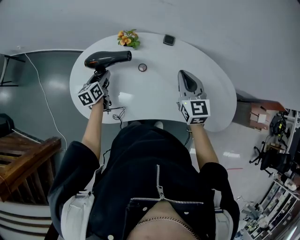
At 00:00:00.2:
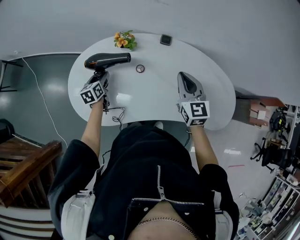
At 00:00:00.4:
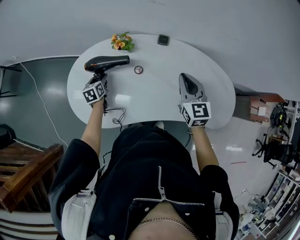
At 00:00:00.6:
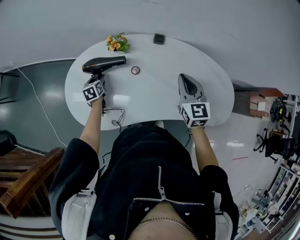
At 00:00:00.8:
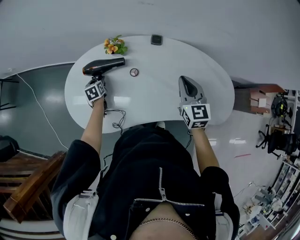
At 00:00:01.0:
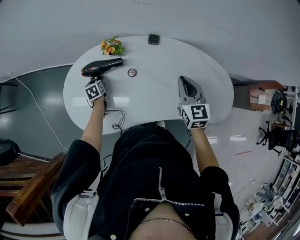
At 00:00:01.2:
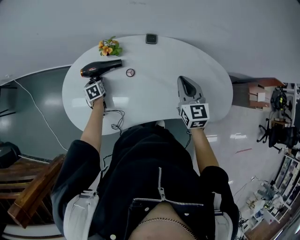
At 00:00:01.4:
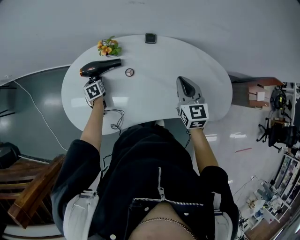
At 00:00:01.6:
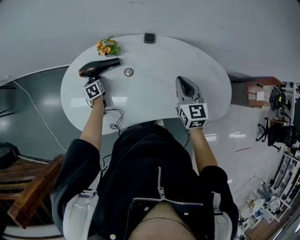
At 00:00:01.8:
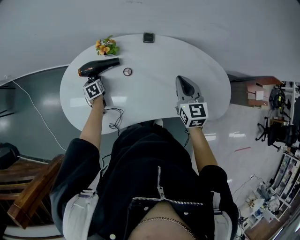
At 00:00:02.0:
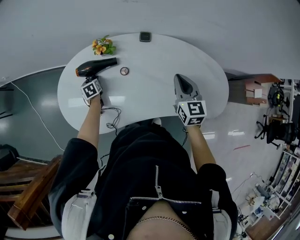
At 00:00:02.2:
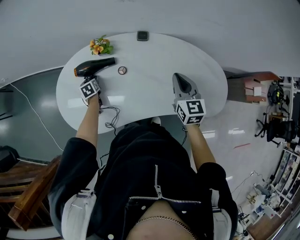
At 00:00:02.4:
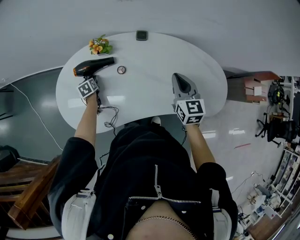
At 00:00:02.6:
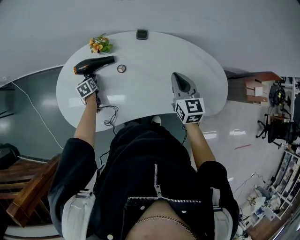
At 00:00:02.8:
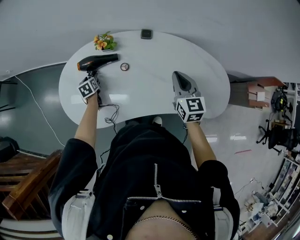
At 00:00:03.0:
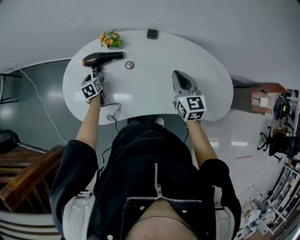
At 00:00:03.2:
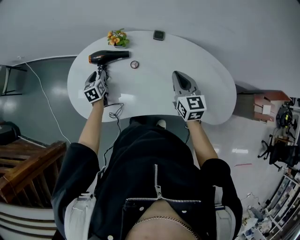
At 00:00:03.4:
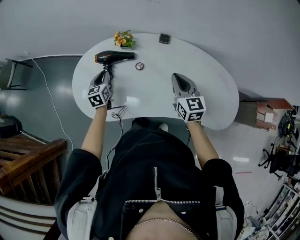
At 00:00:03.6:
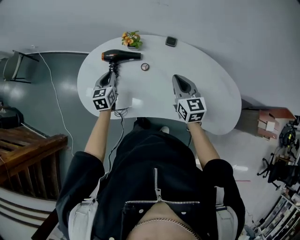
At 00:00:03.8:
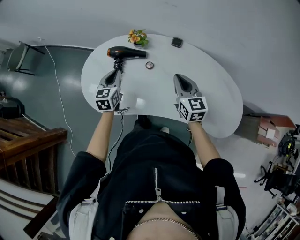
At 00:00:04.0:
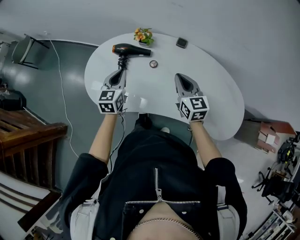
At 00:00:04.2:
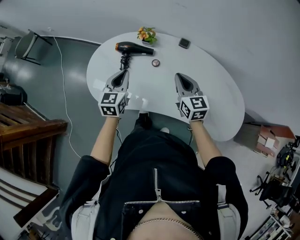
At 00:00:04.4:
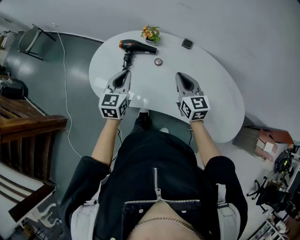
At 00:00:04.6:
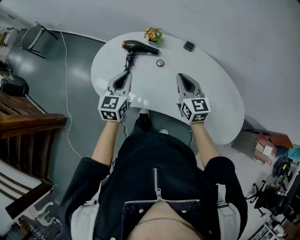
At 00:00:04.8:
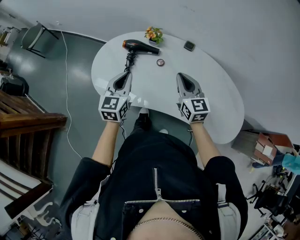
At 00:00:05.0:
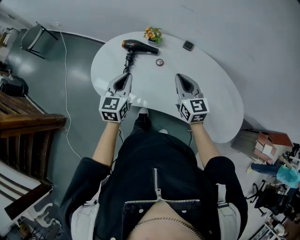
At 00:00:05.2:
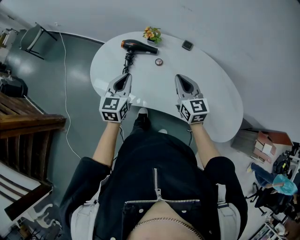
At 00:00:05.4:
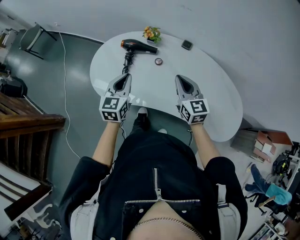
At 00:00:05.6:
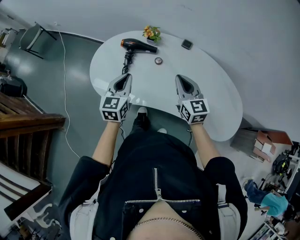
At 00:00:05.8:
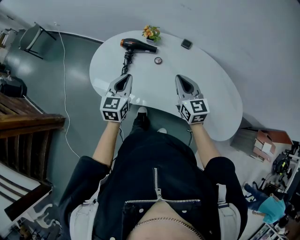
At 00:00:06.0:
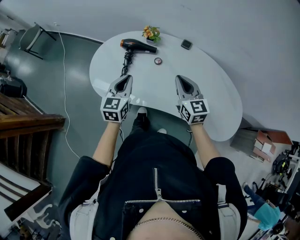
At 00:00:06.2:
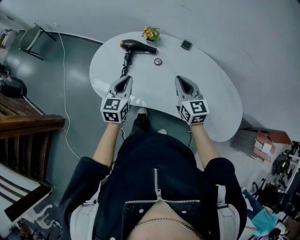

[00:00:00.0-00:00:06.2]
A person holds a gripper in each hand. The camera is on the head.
00:00:00.0 to 00:00:01.6: The right gripper heads to the right, covering some 5 cm. Meanwhile the left gripper goes approximately 10 cm downward, and rotates some 30 degrees.
00:00:01.6 to 00:00:03.2: The left gripper heads upward, covering some 10 cm.
00:00:03.2 to 00:00:04.6: The left gripper travels upward and backward by roughly 25 cm, turns by some 20 degrees, and closes; the right gripper is displaced to the left by some 10 cm.
00:00:04.6 to 00:00:06.2: There are only small adjustments of the grippers.

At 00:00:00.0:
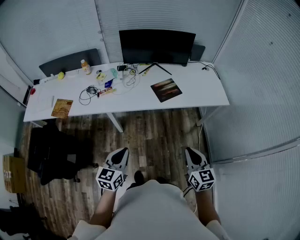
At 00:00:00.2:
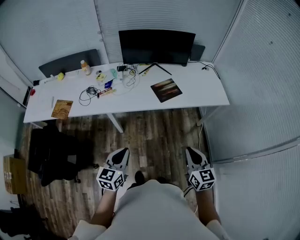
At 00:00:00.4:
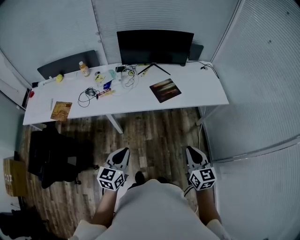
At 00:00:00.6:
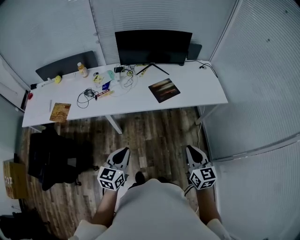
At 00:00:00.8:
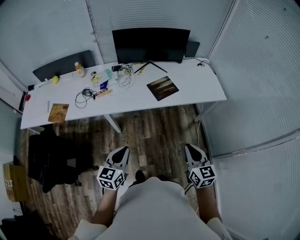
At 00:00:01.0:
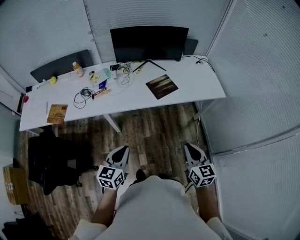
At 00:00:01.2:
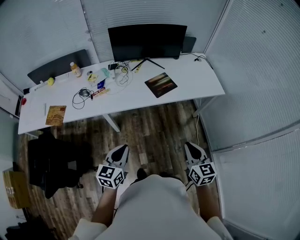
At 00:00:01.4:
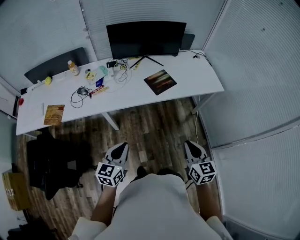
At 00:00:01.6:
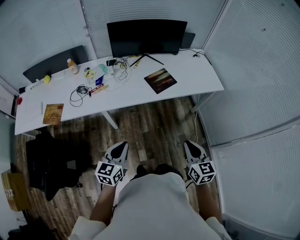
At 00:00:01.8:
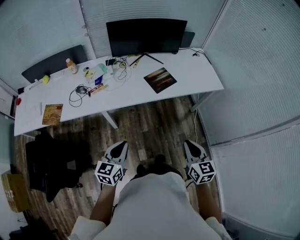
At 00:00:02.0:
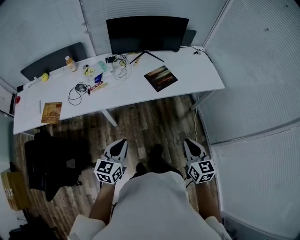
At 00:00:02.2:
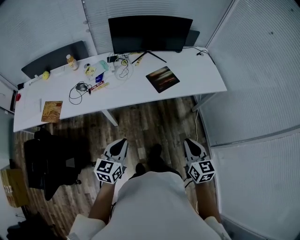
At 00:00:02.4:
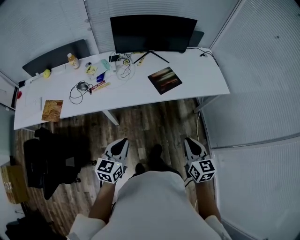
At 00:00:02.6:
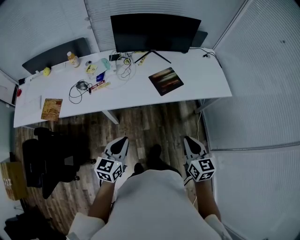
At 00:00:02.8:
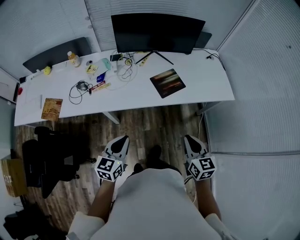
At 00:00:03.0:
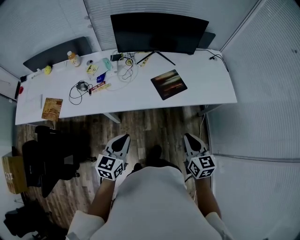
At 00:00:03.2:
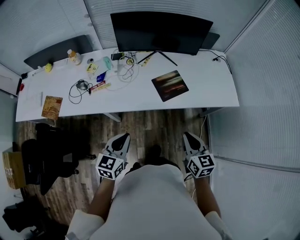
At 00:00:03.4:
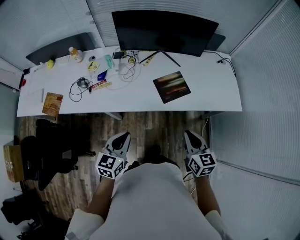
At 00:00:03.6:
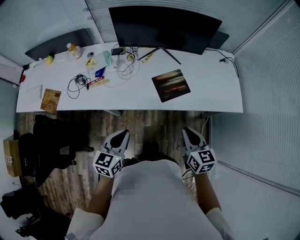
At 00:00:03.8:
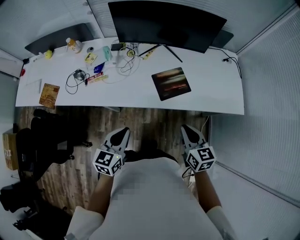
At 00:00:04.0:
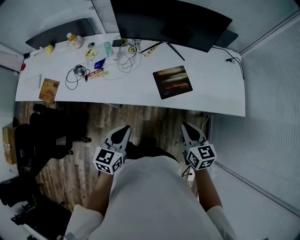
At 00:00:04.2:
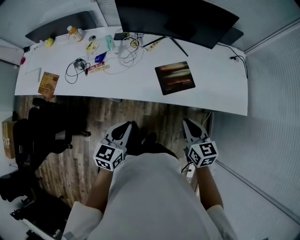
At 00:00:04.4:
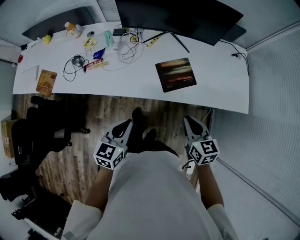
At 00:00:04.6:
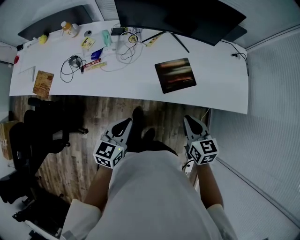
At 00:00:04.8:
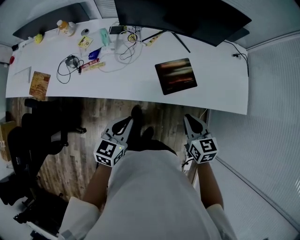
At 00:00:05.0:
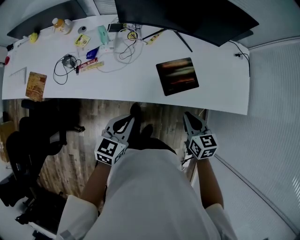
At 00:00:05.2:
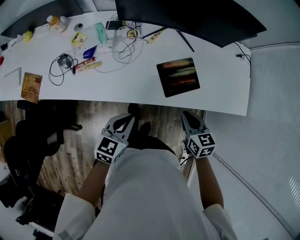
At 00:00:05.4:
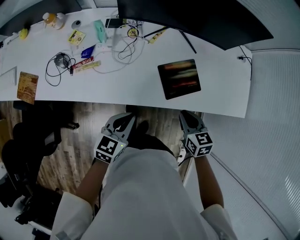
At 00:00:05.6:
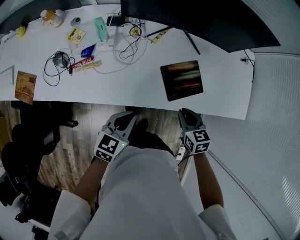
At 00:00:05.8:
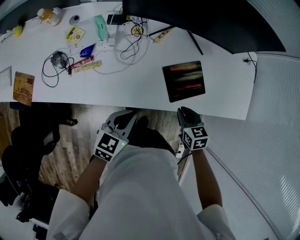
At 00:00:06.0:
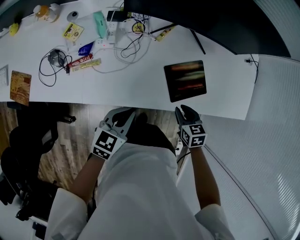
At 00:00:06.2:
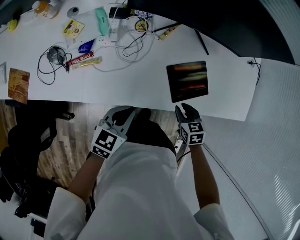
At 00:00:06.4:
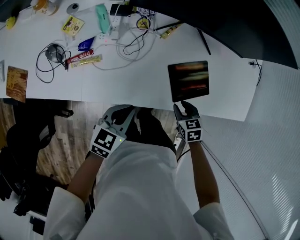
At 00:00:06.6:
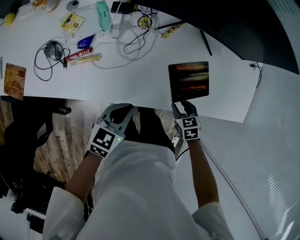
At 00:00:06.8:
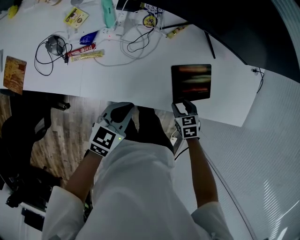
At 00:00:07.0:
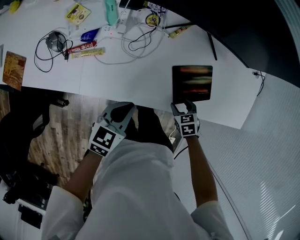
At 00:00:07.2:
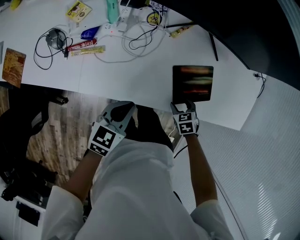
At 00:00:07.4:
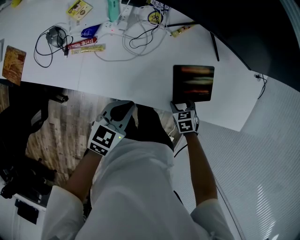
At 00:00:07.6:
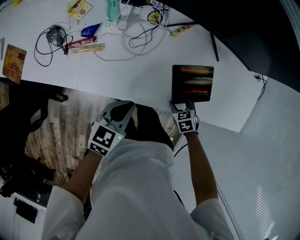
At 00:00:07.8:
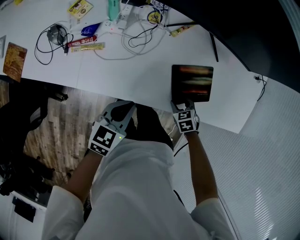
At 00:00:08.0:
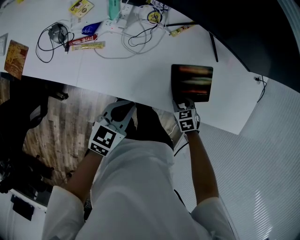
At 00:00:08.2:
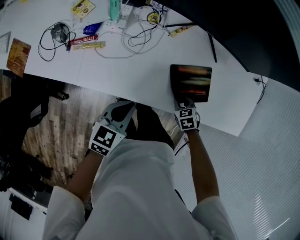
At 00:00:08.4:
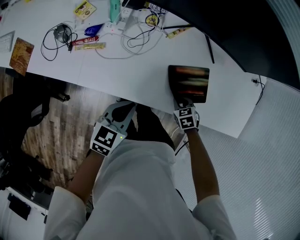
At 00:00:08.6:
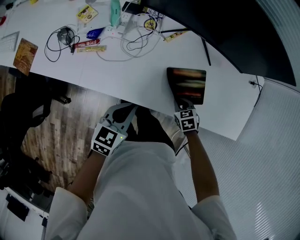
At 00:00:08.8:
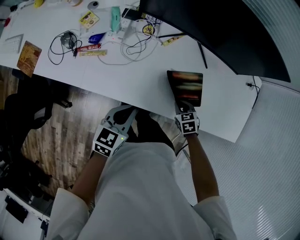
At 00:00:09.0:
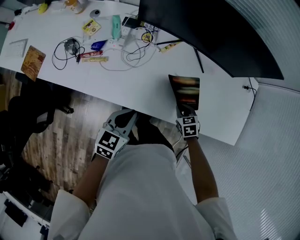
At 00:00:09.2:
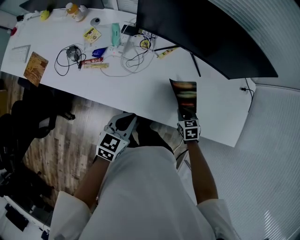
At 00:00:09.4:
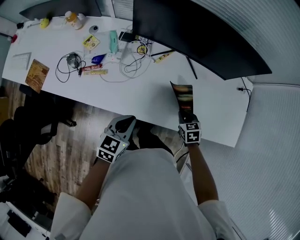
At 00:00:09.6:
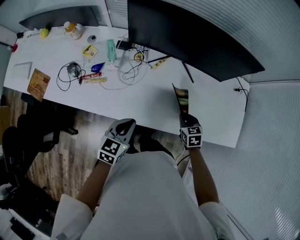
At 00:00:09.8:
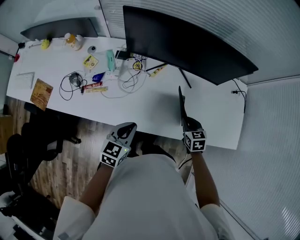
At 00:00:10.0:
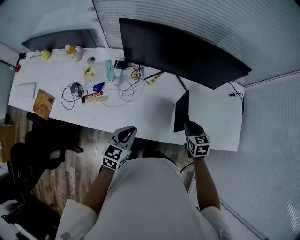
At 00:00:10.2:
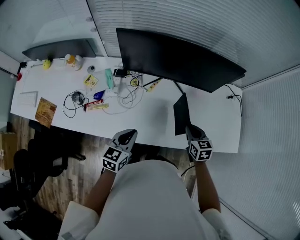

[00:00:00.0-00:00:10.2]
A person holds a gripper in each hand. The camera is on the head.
00:00:00.0 to 00:00:01.4: The grippers stay close to where they were, moving slightly.
00:00:01.4 to 00:00:03.0: The two grippers go some 15 cm forward.
00:00:03.0 to 00:00:04.4: The left gripper shifts roughly 10 cm forward and to the right. The right gripper shifts approximately 15 cm forward and downward.
00:00:04.4 to 00:00:05.8: The left gripper heads forward, downward and to the left, covering approximately 20 cm. The right gripper travels downward, forward and to the left by roughly 20 cm, and rotates about 20 degrees.
00:00:05.8 to 00:00:07.2: The left gripper ends up approximately 5 cm from where it was. The right gripper shifts approximately 15 cm downward, changes its angle by approximately 30 degrees, and opens.
00:00:07.2 to 00:00:08.8: The right gripper moves roughly 5 cm, and closes; the left gripper ends up approximately 5 cm from where it was.
00:00:08.8 to 00:00:10.2: The left gripper heads upward, covering about 10 cm. The right gripper heads upward, covering approximately 20 cm, and turns by about 30 degrees.

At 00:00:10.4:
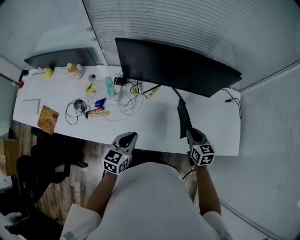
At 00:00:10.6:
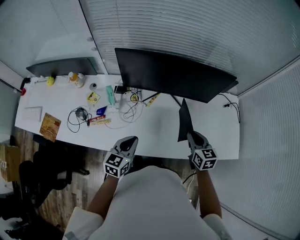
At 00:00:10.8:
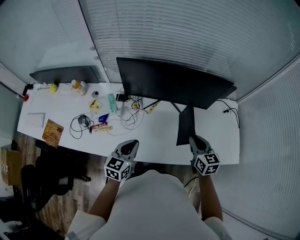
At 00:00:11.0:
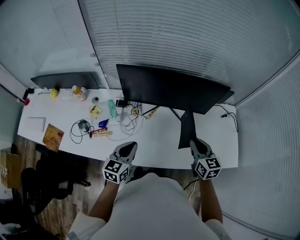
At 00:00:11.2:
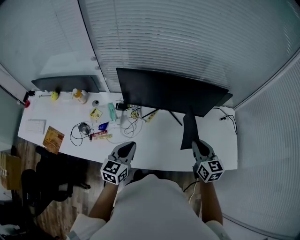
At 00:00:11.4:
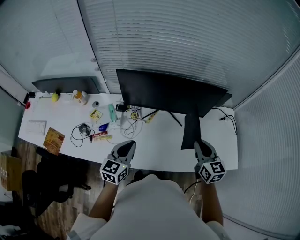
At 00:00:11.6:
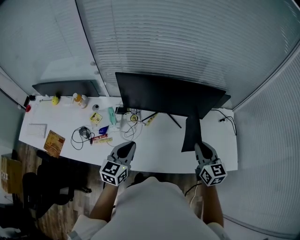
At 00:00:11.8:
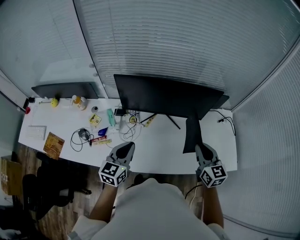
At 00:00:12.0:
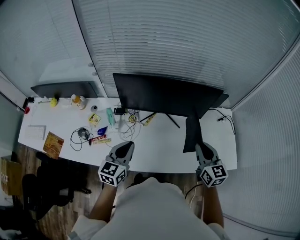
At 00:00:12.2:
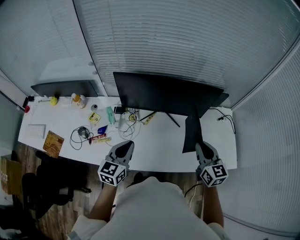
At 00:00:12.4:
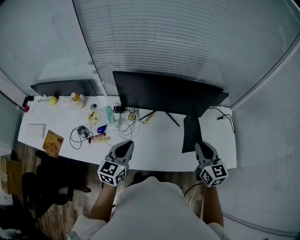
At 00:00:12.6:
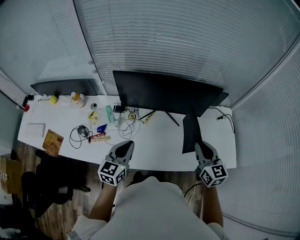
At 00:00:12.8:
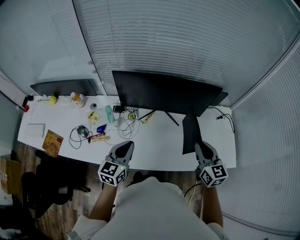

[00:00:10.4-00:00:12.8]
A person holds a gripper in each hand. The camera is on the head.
00:00:10.4 to 00:00:11.6: Both grippers move upward, some 15 cm.
00:00:11.6 to 00:00:12.8: The grippers stay close to where they were, moving slightly.

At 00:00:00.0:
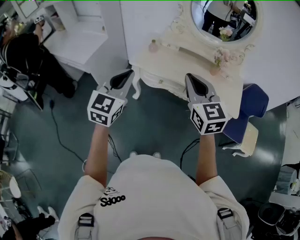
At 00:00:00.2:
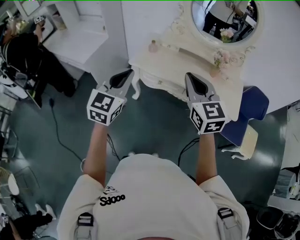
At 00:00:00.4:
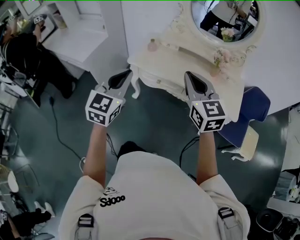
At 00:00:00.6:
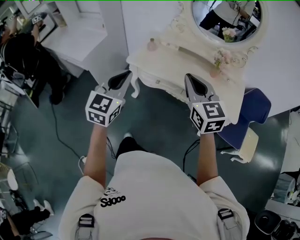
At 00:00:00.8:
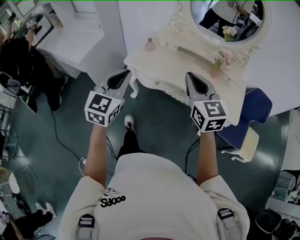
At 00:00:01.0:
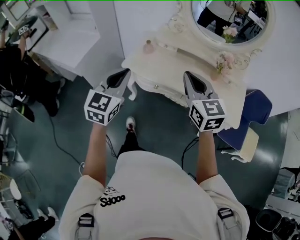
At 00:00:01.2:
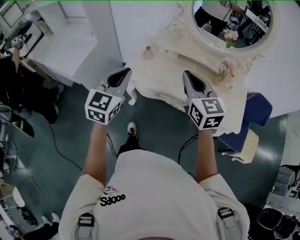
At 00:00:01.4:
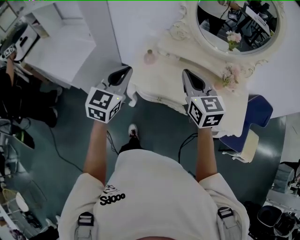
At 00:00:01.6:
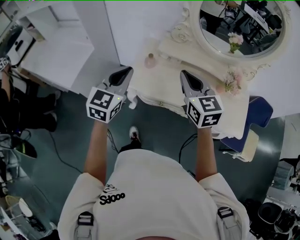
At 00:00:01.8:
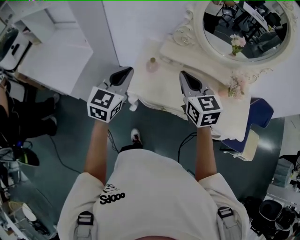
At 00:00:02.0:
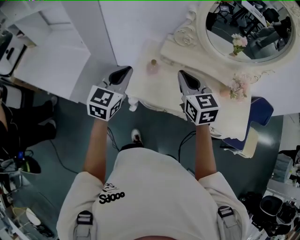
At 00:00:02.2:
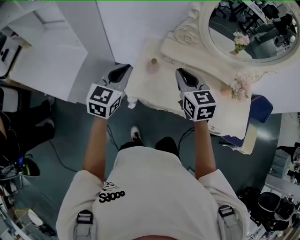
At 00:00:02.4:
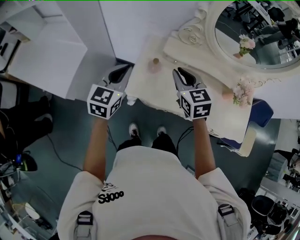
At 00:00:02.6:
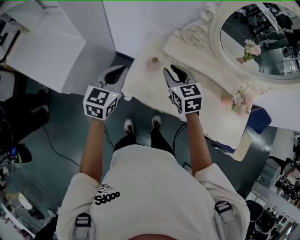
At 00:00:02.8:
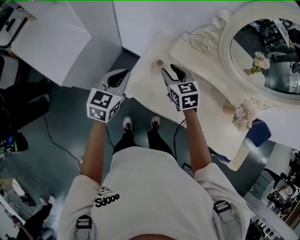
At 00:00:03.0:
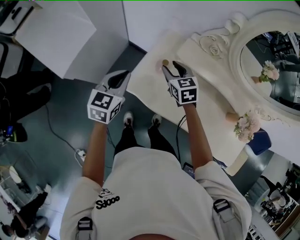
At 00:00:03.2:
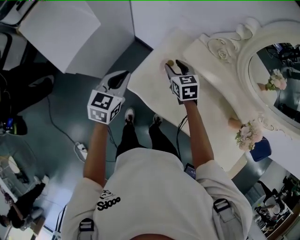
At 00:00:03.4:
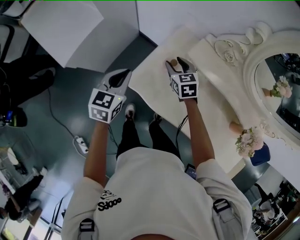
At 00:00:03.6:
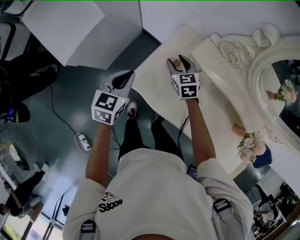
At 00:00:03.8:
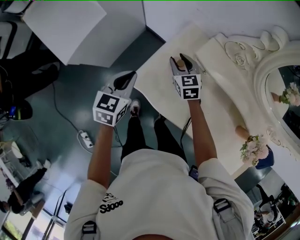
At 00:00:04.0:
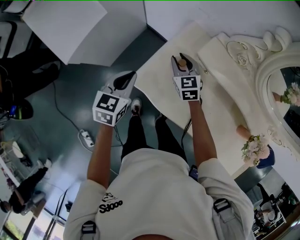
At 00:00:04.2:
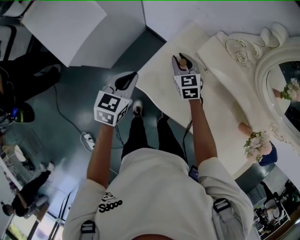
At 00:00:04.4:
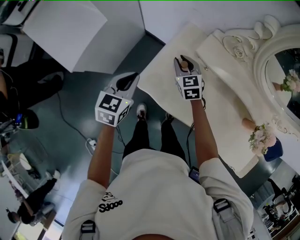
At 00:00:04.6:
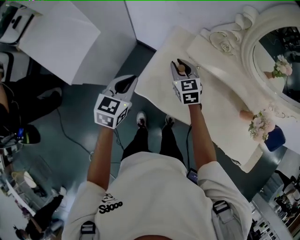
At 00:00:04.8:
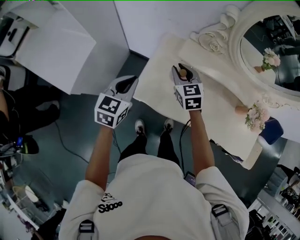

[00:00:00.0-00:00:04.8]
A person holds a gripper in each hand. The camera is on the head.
00:00:00.0 to 00:00:01.6: Both grippers travel together forward, some 25 cm.
00:00:01.6 to 00:00:03.2: The right gripper goes approximately 40 cm forward and downward, rotates approximately 30 degrees, and opens, while the left gripper travels downward, forward and to the left by approximately 25 cm, and changes its angle by approximately 30 degrees.
00:00:03.2 to 00:00:04.8: The right gripper goes some 5 cm upward, and closes its fingers.
